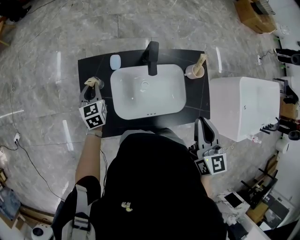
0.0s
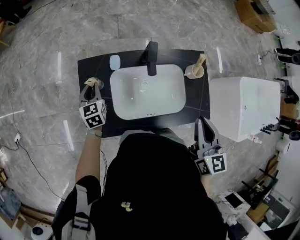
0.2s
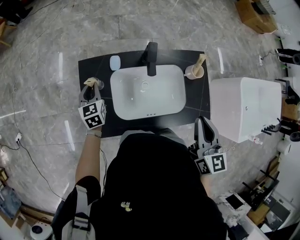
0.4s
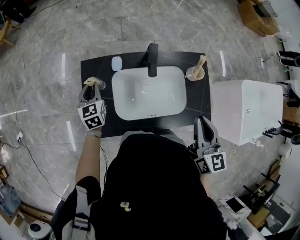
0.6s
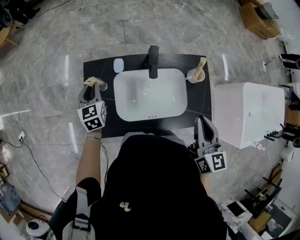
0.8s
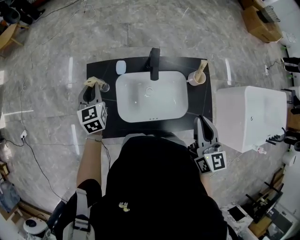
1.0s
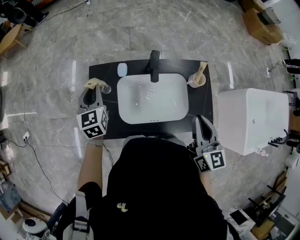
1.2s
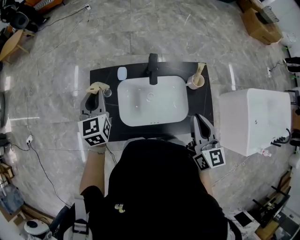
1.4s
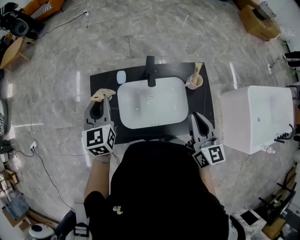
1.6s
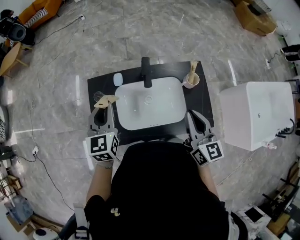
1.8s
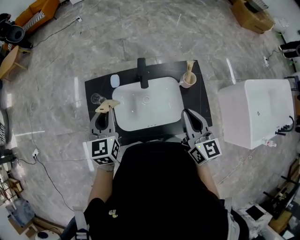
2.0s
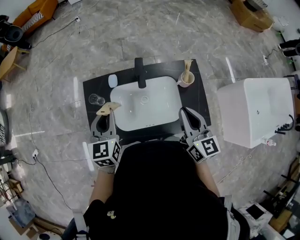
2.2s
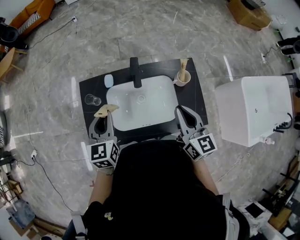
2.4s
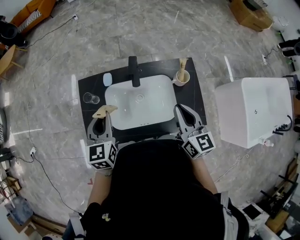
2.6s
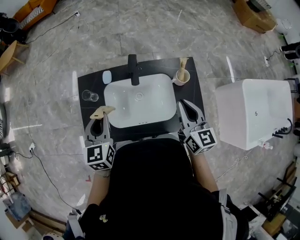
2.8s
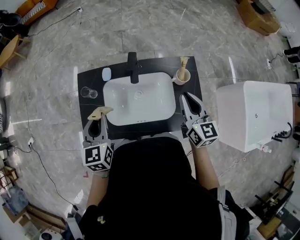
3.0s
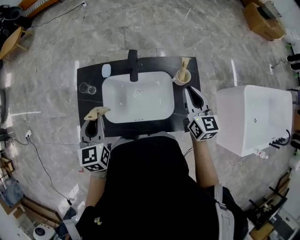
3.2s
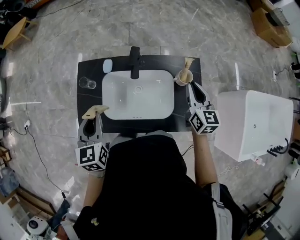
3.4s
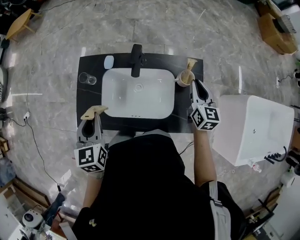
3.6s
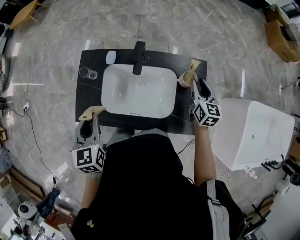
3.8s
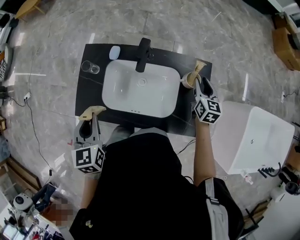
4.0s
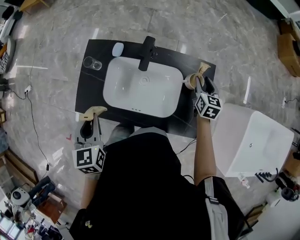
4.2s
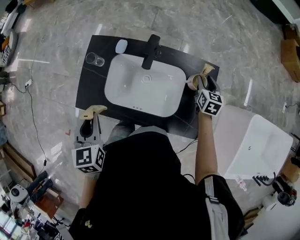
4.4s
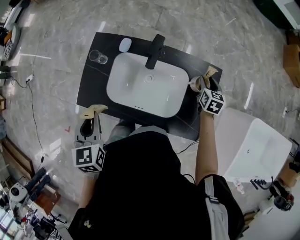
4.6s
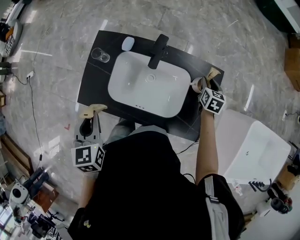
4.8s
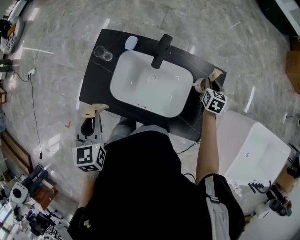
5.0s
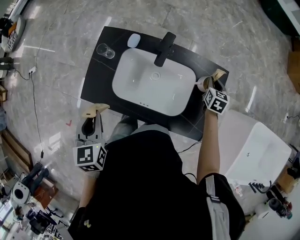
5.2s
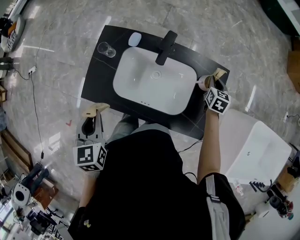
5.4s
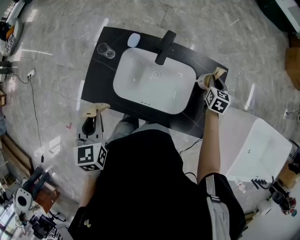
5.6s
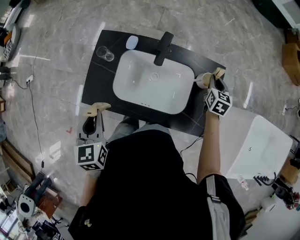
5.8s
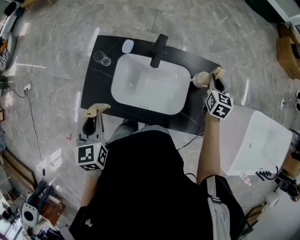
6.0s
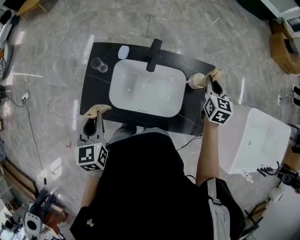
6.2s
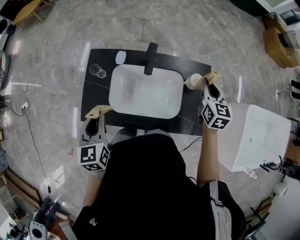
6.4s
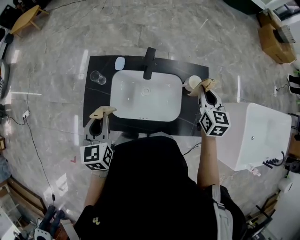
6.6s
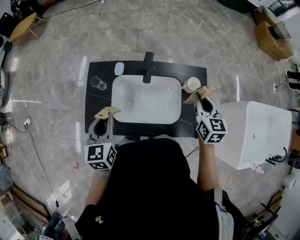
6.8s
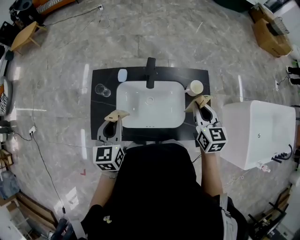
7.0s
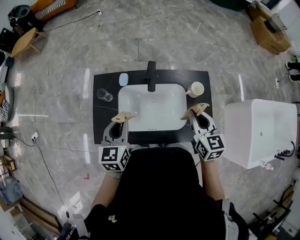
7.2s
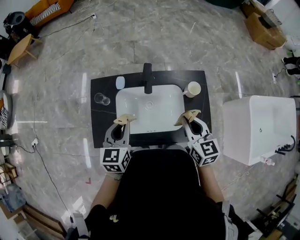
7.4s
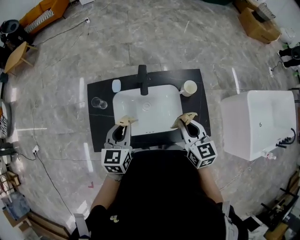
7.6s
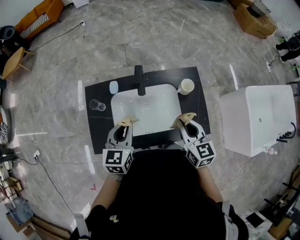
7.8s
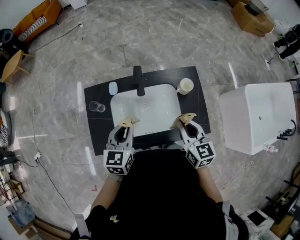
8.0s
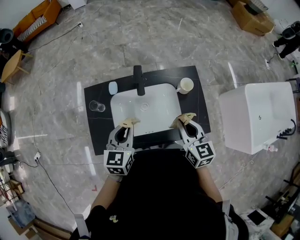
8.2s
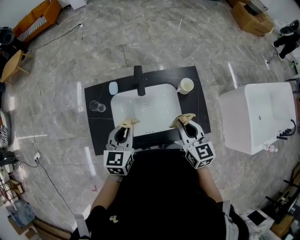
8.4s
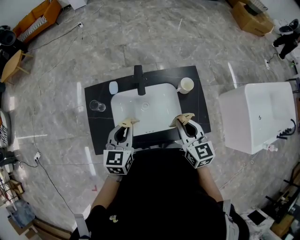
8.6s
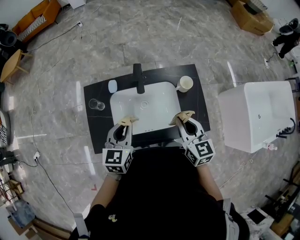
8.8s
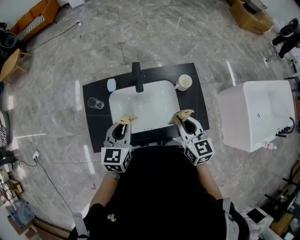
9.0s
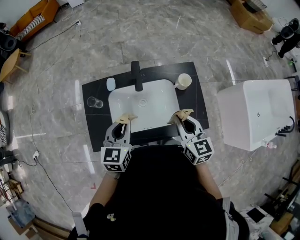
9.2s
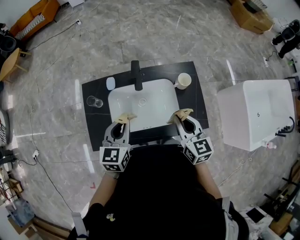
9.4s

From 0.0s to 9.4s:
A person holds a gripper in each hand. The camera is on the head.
From 0.0s to 1.6s: The left gripper heads upward, covering approximately 20 cm.
From 1.6s to 3.2s: The right gripper heads to the right, forward and downward, covering approximately 15 cm. Meanwhile the left gripper is displaced backward and to the right by about 10 cm.
From 3.2s to 4.8s: The right gripper is displaced downward, forward and to the right by approximately 25 cm, tips its fingers downward by about 30 degrees, and opens up. Meanwhile the left gripper is displaced backward by approximately 10 cm, and rotates about 20 degrees.
From 4.8s to 6.2s: The right gripper heads upward, covering approximately 15 cm, and closes up.
From 6.2s to 7.8s: The right gripper shifts some 20 cm backward and to the left. The left gripper moves to the right and forward, roughly 15 cm, and swivels roughly 30 degrees.
From 7.8s to 9.4s: The grippers stay close to where they were, moving slightly.

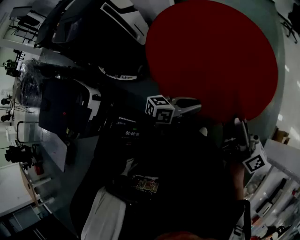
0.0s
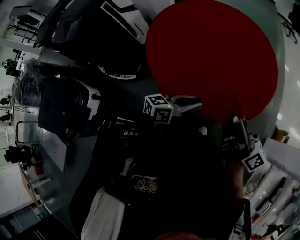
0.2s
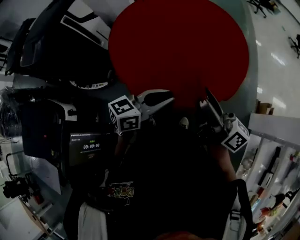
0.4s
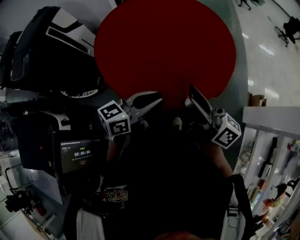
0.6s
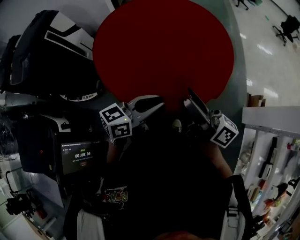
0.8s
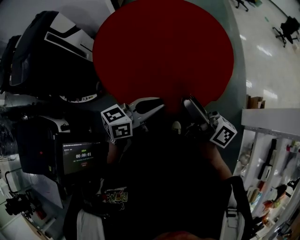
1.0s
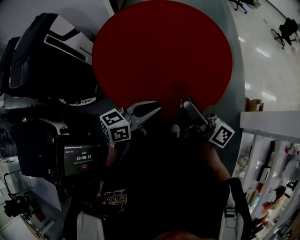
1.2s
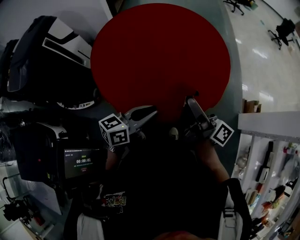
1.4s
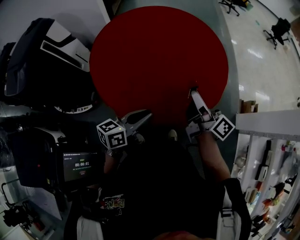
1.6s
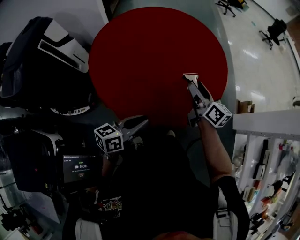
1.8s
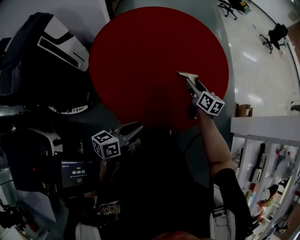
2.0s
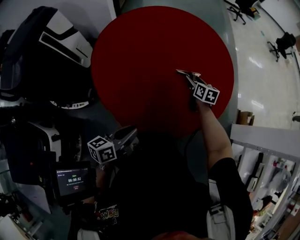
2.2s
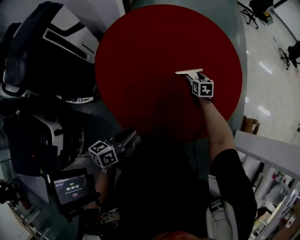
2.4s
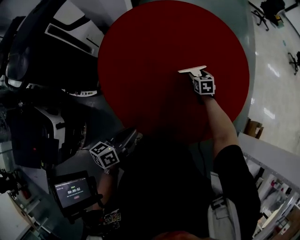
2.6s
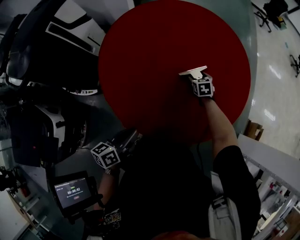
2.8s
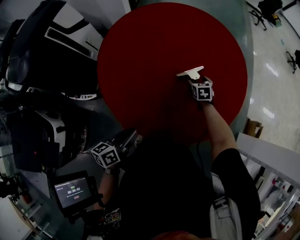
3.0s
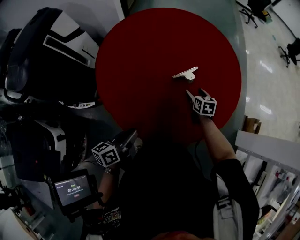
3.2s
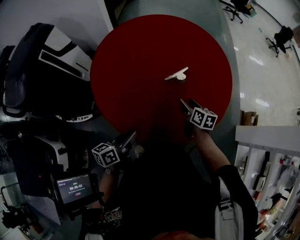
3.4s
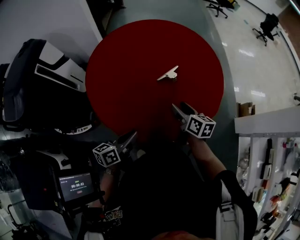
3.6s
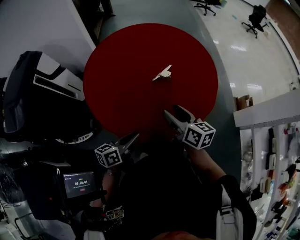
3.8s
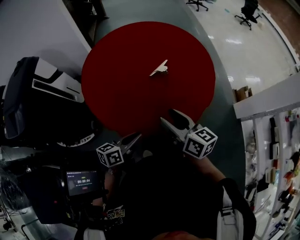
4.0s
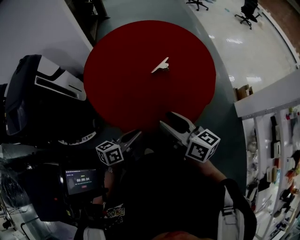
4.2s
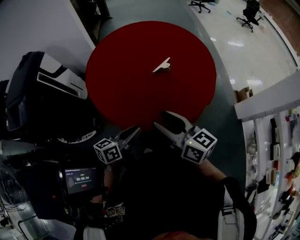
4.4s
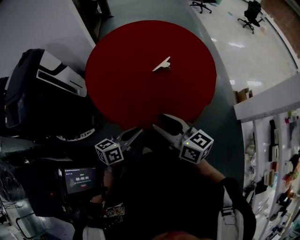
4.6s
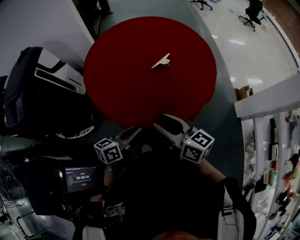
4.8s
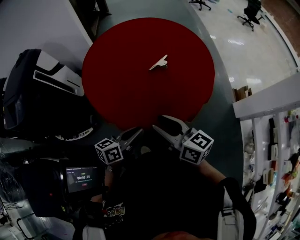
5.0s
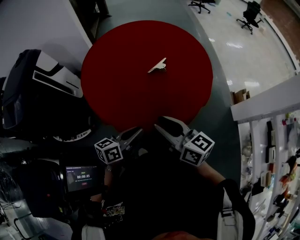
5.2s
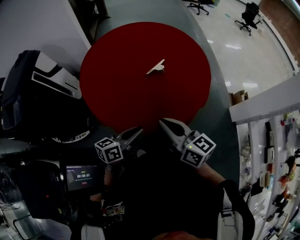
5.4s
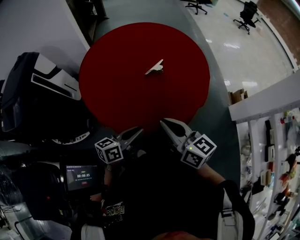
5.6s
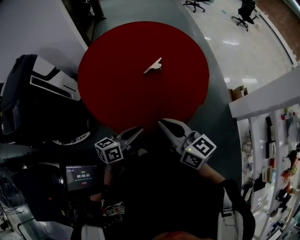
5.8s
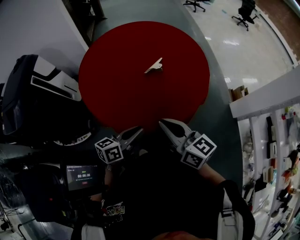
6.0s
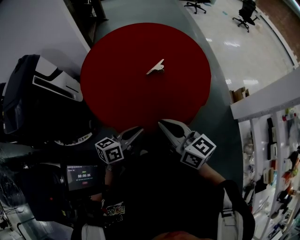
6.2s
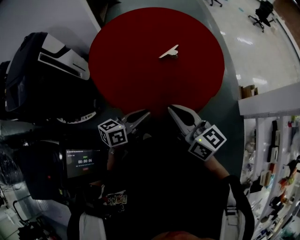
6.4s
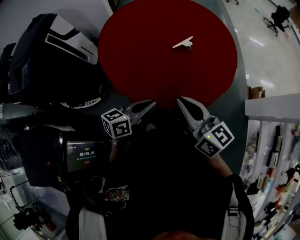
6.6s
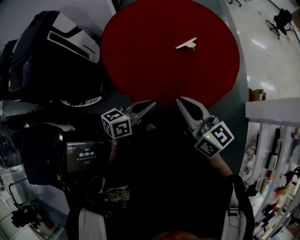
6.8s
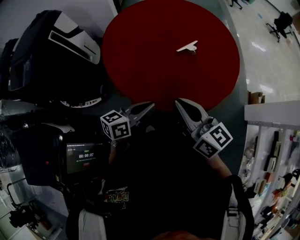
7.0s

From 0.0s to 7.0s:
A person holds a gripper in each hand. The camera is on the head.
From 0.0s to 1.4s: The right gripper is displaced forward and downward by some 5 cm.
From 1.4s to 2.8s: The right gripper moves downward and forward, about 50 cm, and points its fingers some 70 degrees further downward. The left gripper is displaced downward and to the left by roughly 15 cm, and swivels roughly 40 degrees.
From 2.8s to 4.2s: The right gripper moves backward and upward, approximately 50 cm, and angles its fingers upward, by approximately 50 degrees. Meanwhile the left gripper shifts some 5 cm backward, and turns by approximately 30 degrees.
From 4.2s to 5.6s: The right gripper closes.
From 5.6s to 7.0s: There are only small adjustments of the grippers.

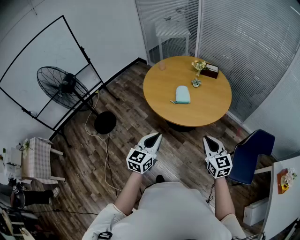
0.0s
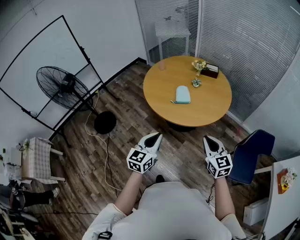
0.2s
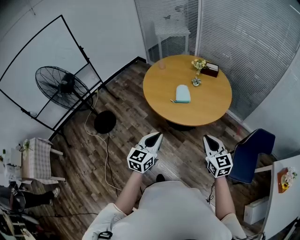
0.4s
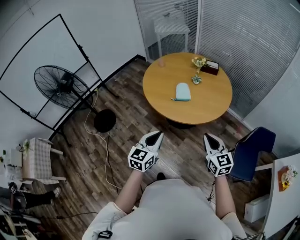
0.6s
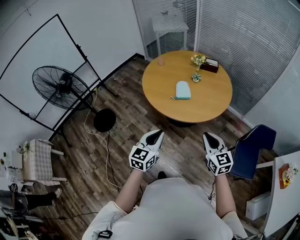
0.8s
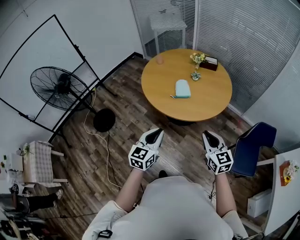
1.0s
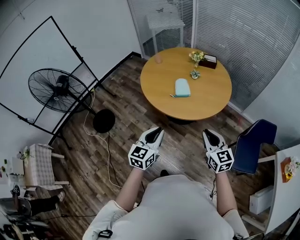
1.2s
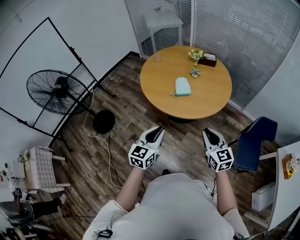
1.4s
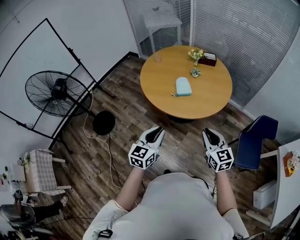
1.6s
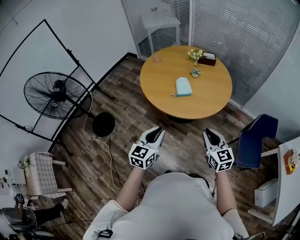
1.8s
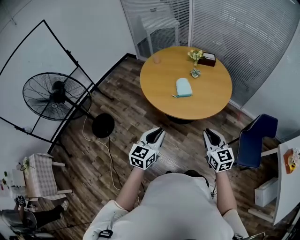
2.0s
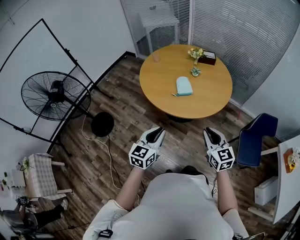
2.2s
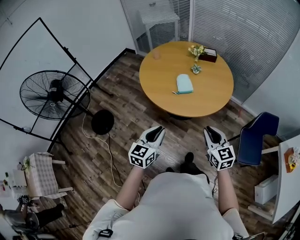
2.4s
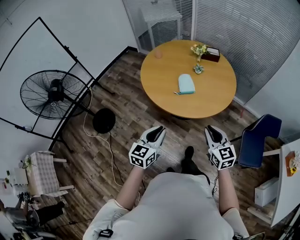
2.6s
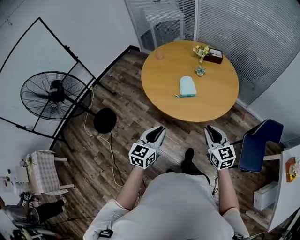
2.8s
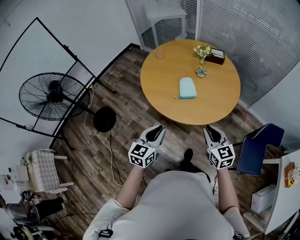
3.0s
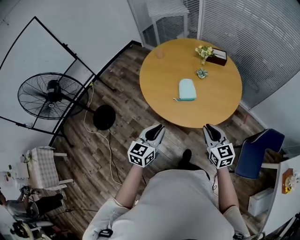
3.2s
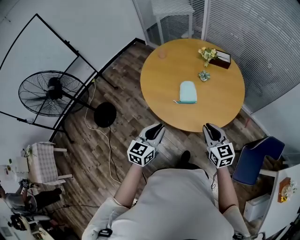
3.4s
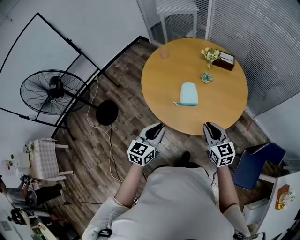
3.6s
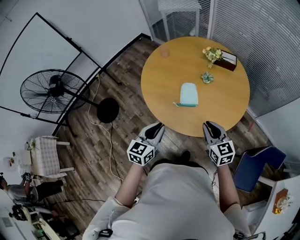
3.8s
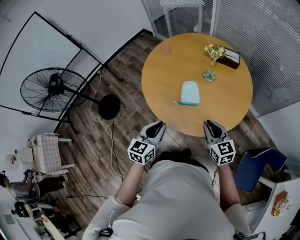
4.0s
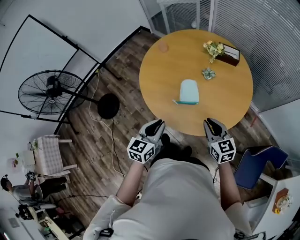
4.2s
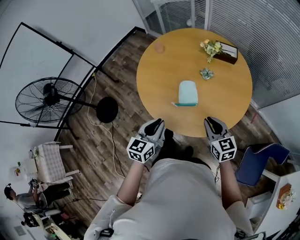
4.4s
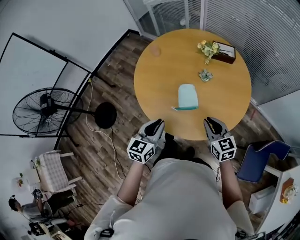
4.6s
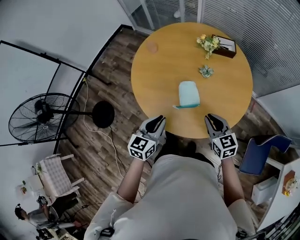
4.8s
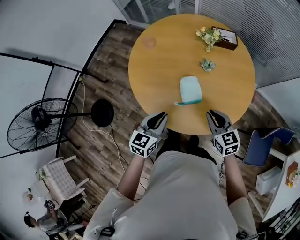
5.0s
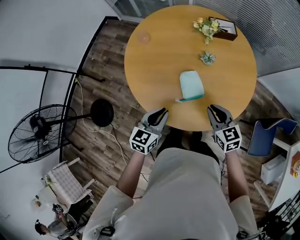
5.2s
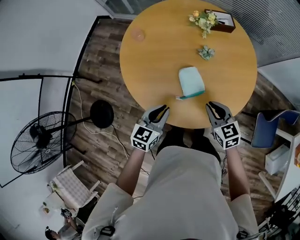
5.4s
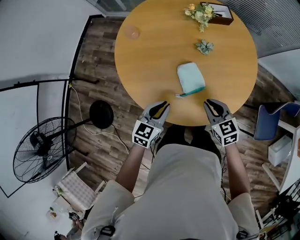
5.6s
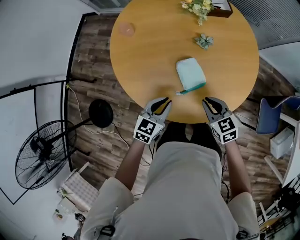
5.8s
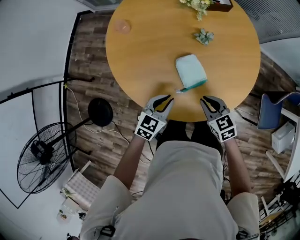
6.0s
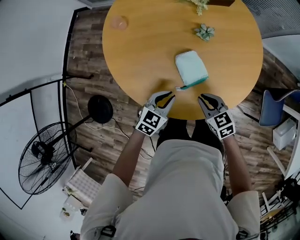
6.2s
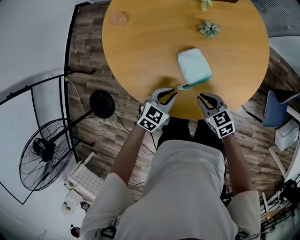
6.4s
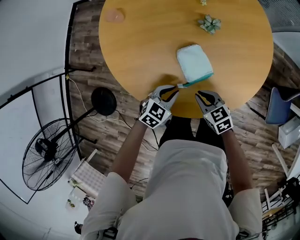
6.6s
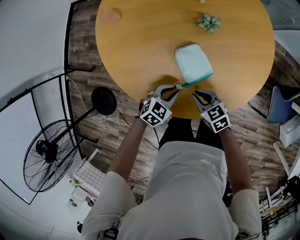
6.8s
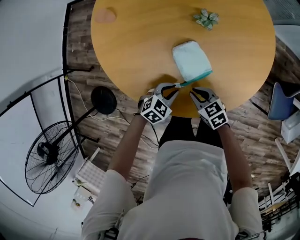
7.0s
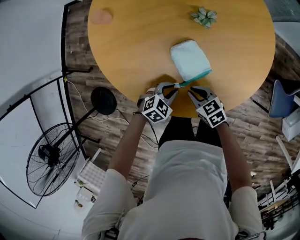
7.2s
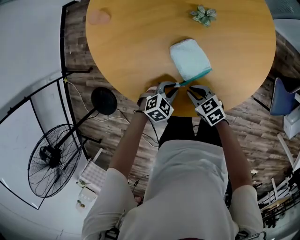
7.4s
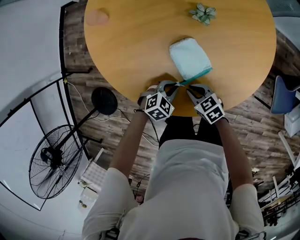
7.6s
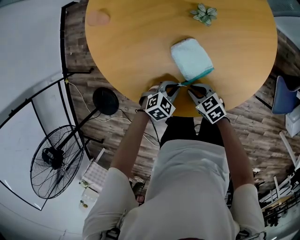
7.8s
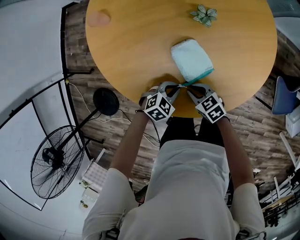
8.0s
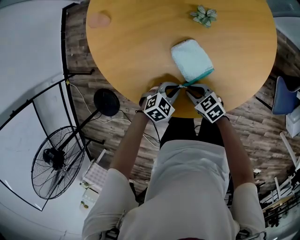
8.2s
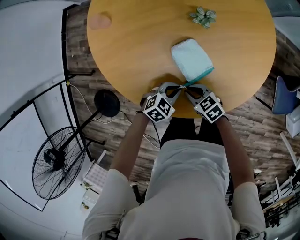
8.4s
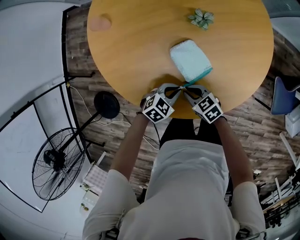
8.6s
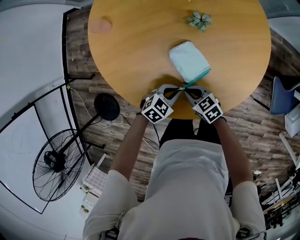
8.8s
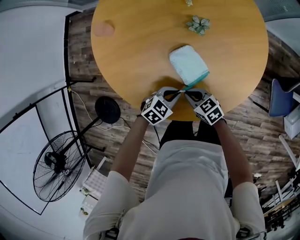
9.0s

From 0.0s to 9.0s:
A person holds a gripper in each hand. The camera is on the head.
From 0.0s to 1.6s: Both grippers travel together to the left, approximately 5 cm.
From 1.6s to 3.0s: The grippers both shift forward by roughly 15 cm.
From 3.0s to 4.4s: The two grippers go some 20 cm forward.
From 4.4s to 6.0s: The right gripper goes some 25 cm downward, to the left and forward, and rotates approximately 20 degrees. The left gripper travels downward and forward by roughly 25 cm, and turns by roughly 40 degrees.
From 6.0s to 7.6s: The two grippers go about 20 cm downward. The left gripper rotates about 40 degrees.
From 7.6s to 9.0s: The left gripper shifts approximately 5 cm upward.
